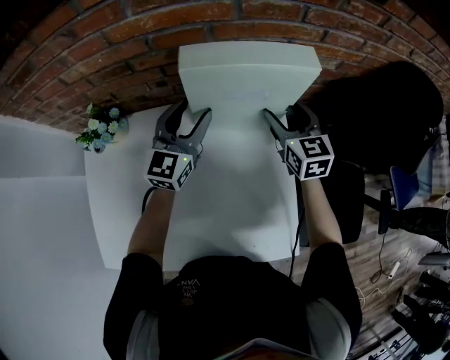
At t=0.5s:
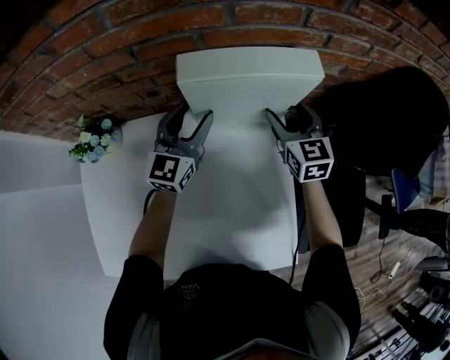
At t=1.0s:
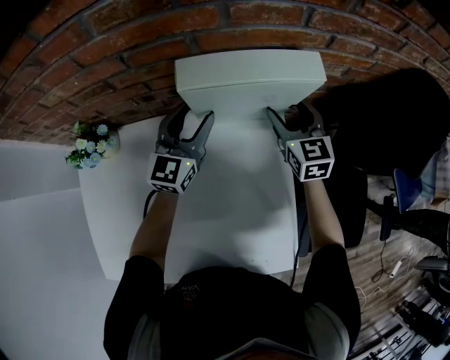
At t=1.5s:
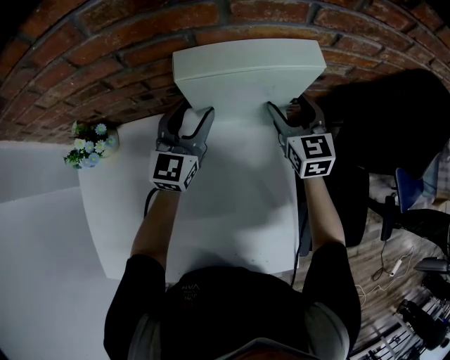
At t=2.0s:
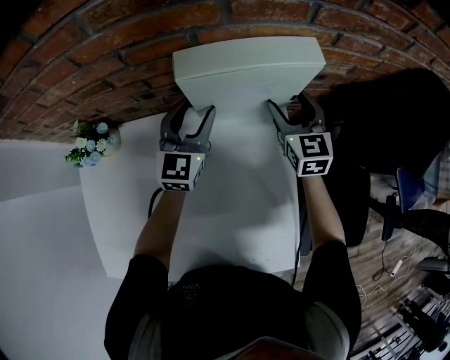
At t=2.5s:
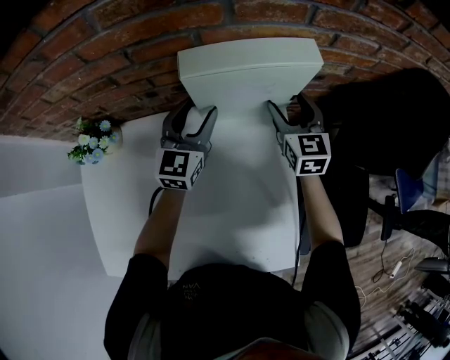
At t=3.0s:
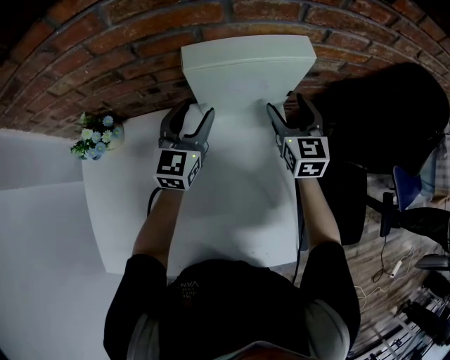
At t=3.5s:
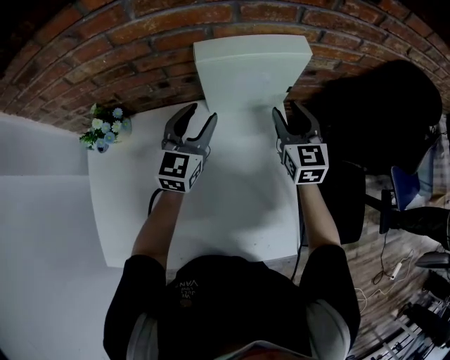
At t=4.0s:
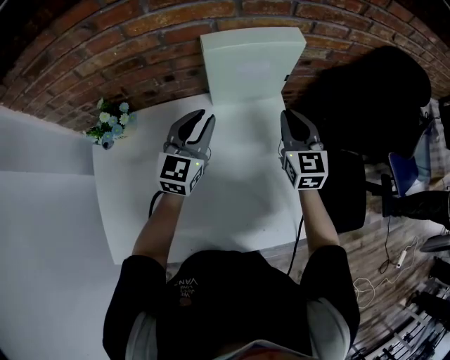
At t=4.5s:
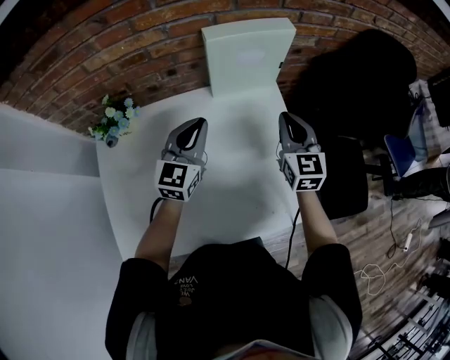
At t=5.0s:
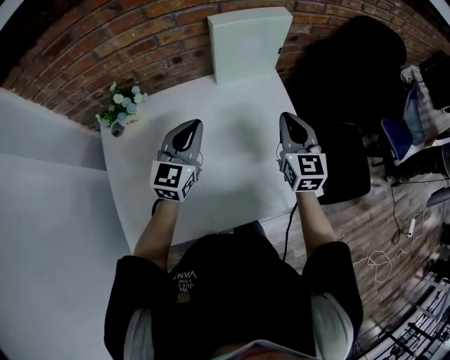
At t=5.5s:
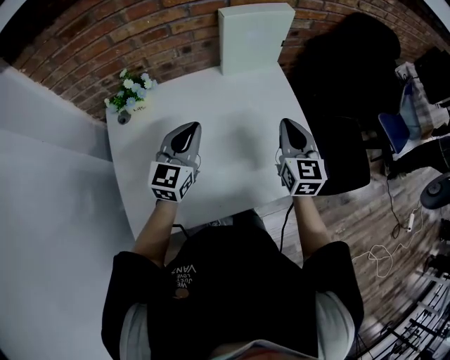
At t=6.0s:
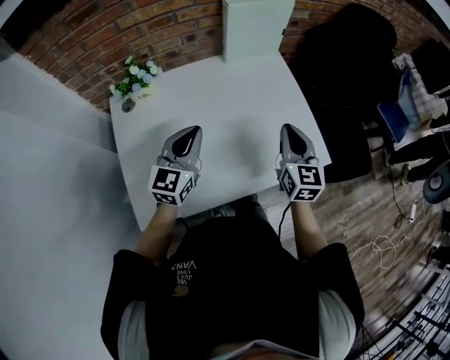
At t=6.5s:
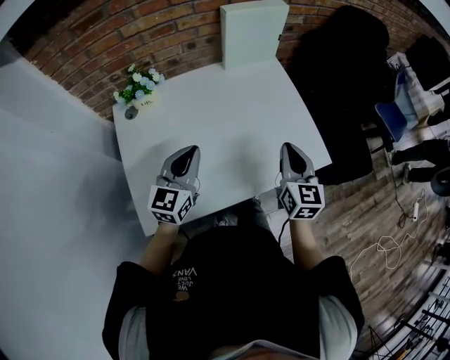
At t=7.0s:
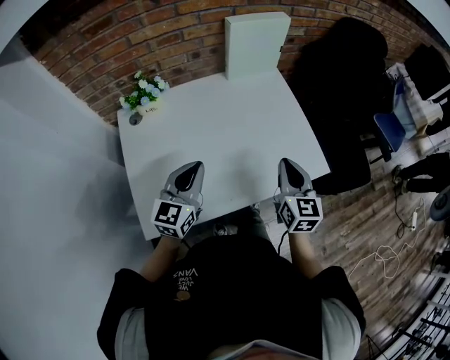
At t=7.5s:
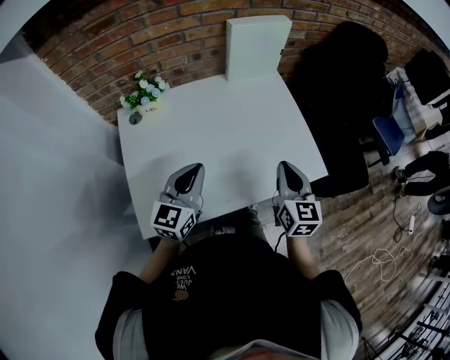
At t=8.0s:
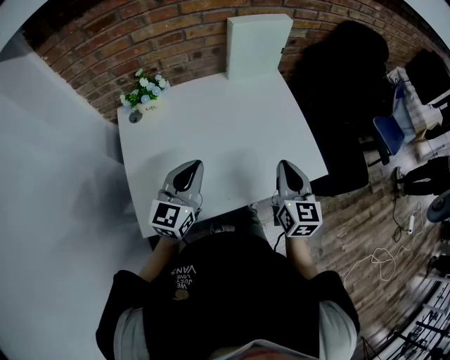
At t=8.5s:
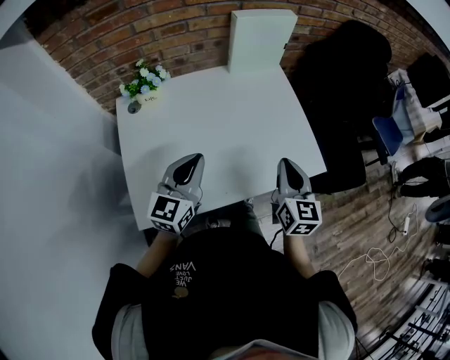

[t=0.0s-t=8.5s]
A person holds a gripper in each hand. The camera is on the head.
t=0.0s to t=2.0s: Both grippers move forward, about 5 cm.
t=2.0s to t=4.0s: Both grippers travel together backward, roughly 15 cm. The right gripper closes its fingers. Meanwhile the left gripper closes up.
t=4.0s to t=6.5s: Both grippers move backward, approximately 30 cm. The right gripper rotates approximately 20 degrees.
t=6.5s to t=8.5s: There are only small adjustments of the grippers.

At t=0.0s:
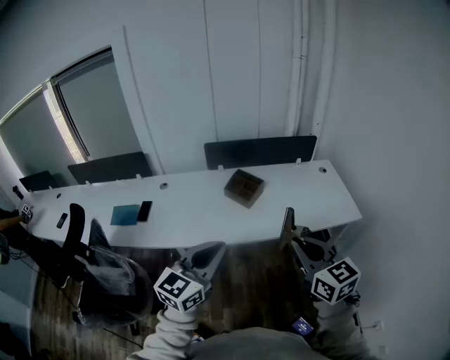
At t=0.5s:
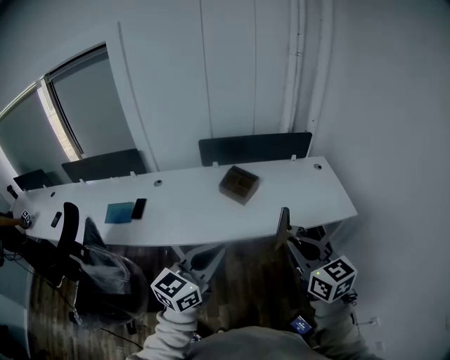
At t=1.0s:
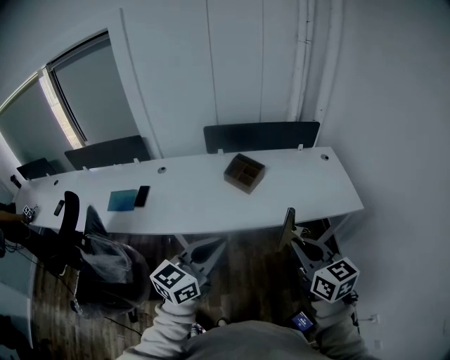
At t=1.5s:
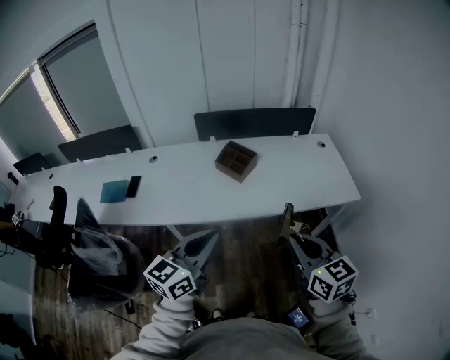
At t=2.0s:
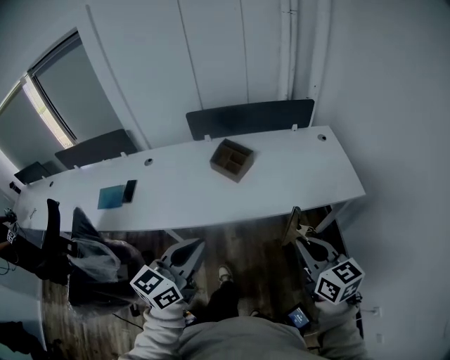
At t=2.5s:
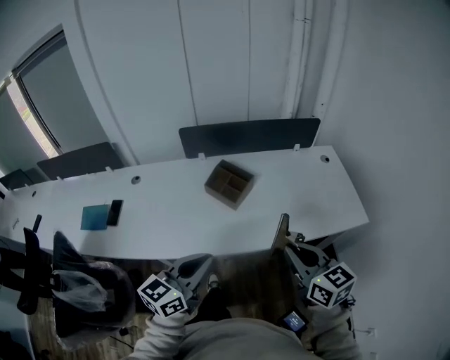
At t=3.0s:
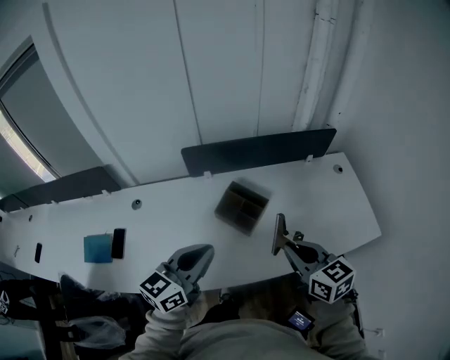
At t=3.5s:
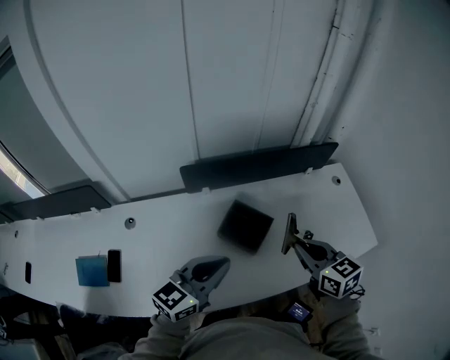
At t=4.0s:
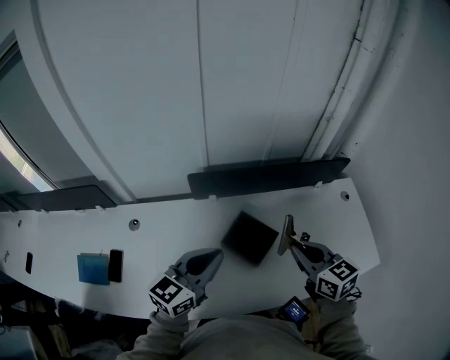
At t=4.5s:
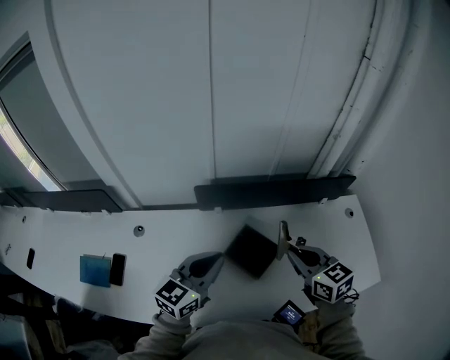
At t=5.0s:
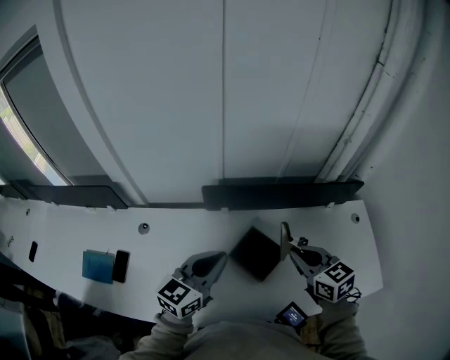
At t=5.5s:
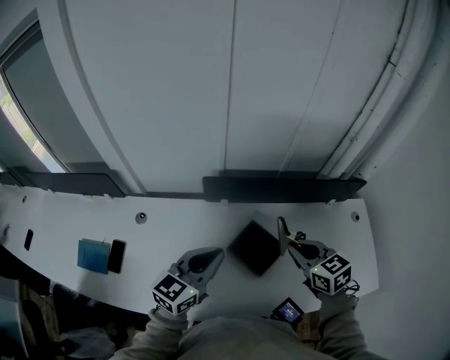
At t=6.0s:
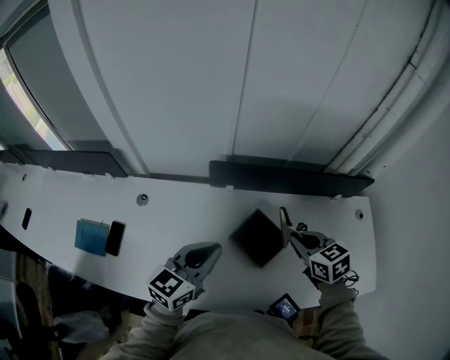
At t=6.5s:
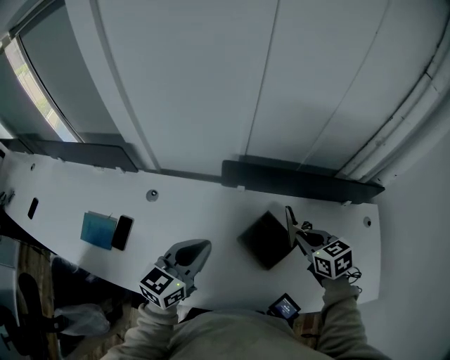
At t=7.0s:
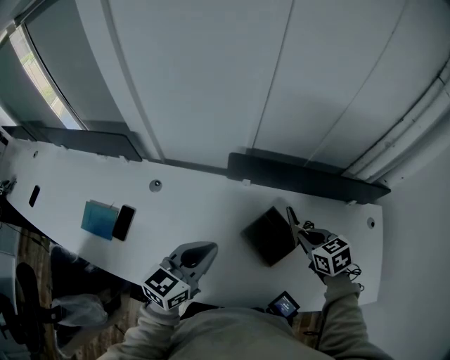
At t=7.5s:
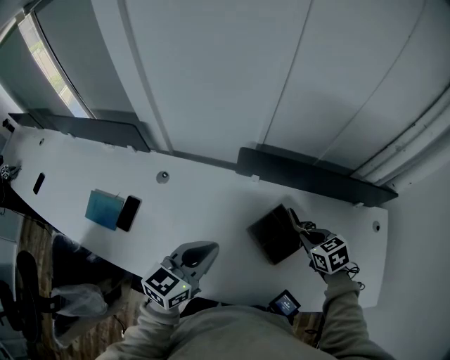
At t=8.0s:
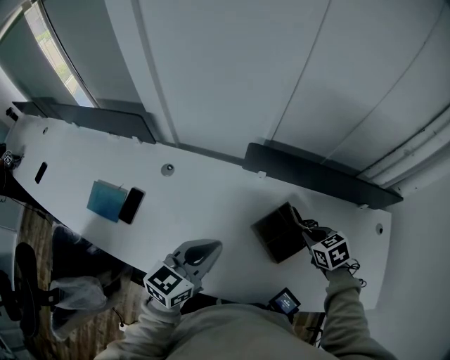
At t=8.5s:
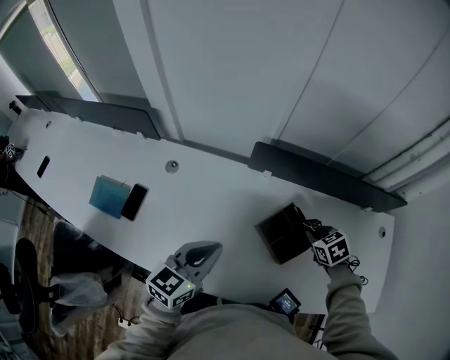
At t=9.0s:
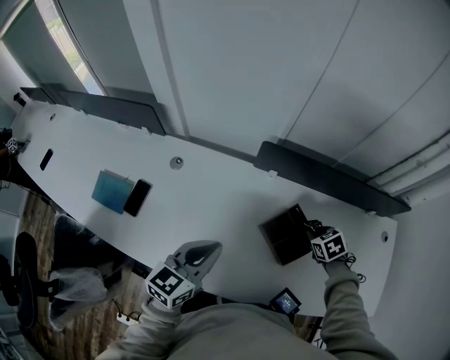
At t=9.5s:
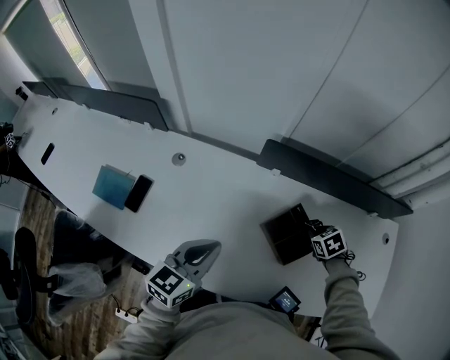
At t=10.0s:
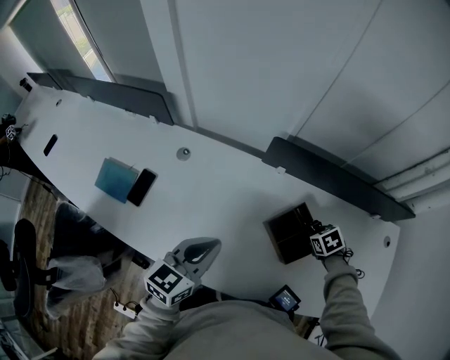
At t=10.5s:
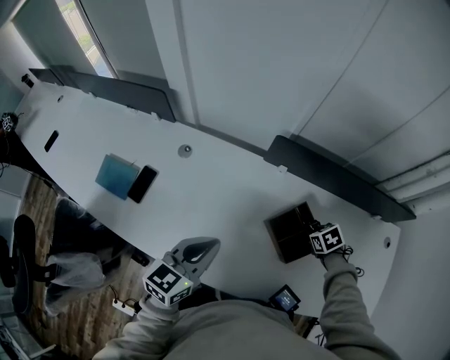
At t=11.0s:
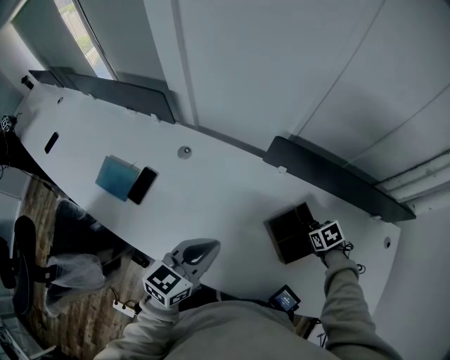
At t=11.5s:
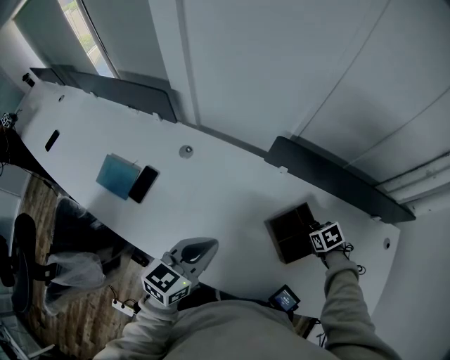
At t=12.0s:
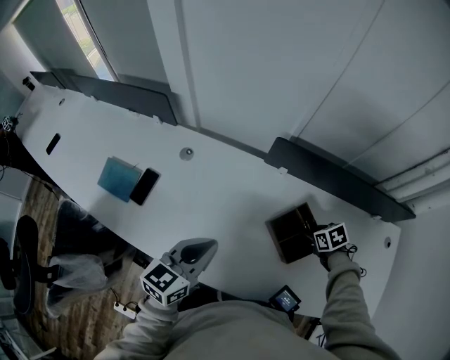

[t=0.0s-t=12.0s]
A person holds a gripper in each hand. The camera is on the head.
t=0.0s to t=2.0s: The right gripper shifts roughly 15 cm downward and to the right; the left gripper moves downward, some 5 cm.
t=2.0s to t=4.0s: The two grippers travel together, forward, about 50 cm.
t=4.0s to t=6.0s: The right gripper shifts roughly 10 cm forward and downward, and swivels roughly 20 degrees. Meanwhile the left gripper changes place by approximately 5 cm.
t=6.0s to t=8.0s: The left gripper moves to the left, some 5 cm. Meanwhile the right gripper travels downward by about 10 cm, and turns by roughly 20 degrees.
t=8.0s to t=10.0s: The right gripper shifts roughly 10 cm downward.
t=10.0s to t=12.0s: The right gripper opens its fingers.

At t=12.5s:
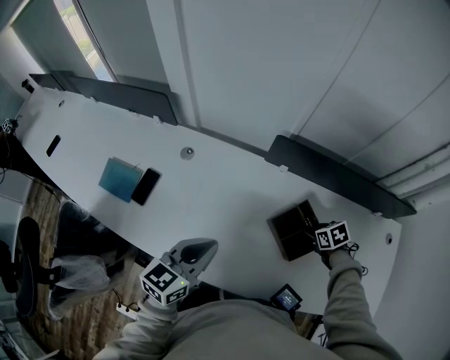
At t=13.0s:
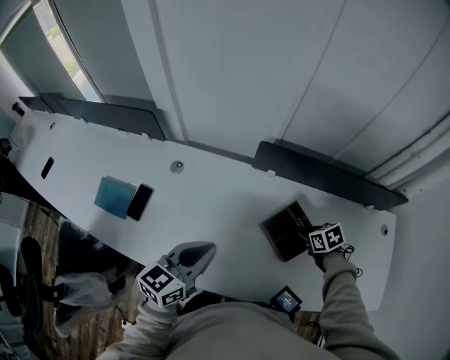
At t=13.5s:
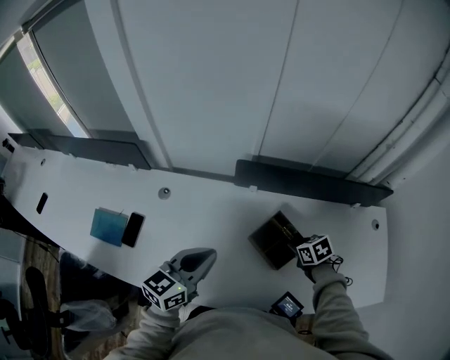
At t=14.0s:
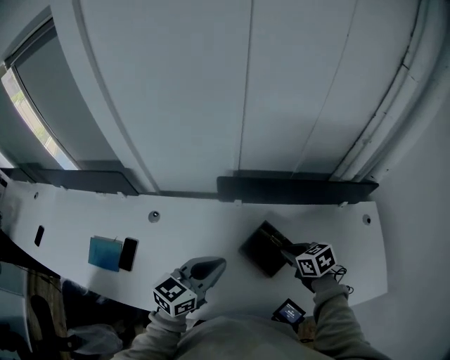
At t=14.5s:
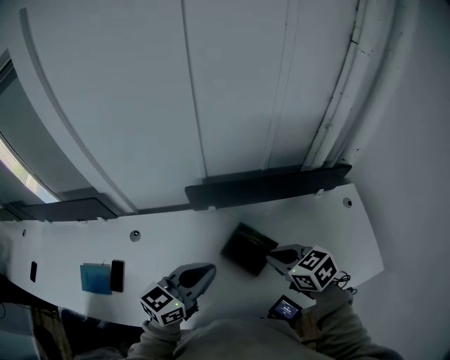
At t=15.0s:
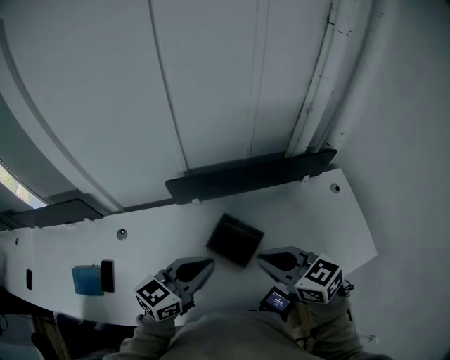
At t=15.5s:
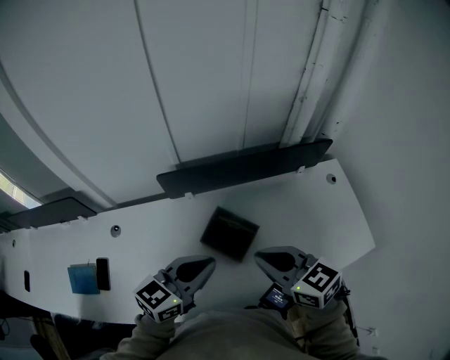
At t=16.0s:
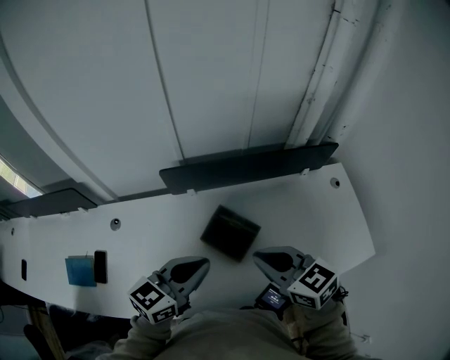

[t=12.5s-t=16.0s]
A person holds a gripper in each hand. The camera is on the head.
t=12.5s to t=14.5s: The left gripper shifts approximately 15 cm to the right and upward, and changes its angle by roughly 30 degrees. Meanwhile the right gripper goes about 25 cm upward, swivels about 30 degrees, and closes its fingers.
t=14.5s to t=16.0s: The left gripper shifts some 5 cm to the right, while the right gripper moves about 5 cm.

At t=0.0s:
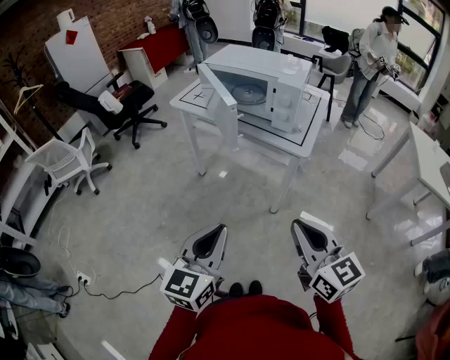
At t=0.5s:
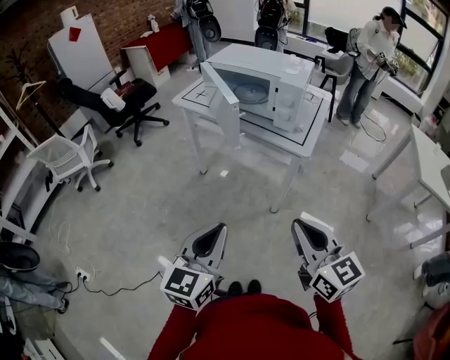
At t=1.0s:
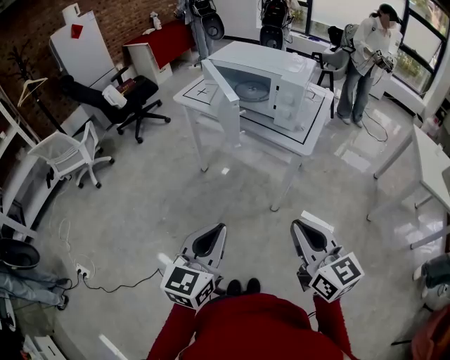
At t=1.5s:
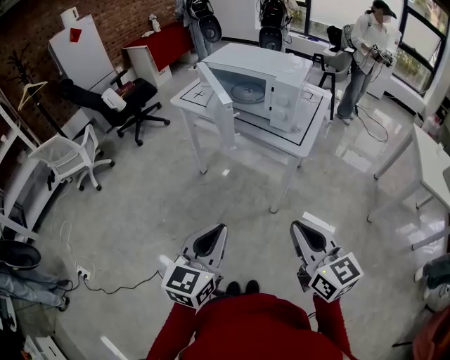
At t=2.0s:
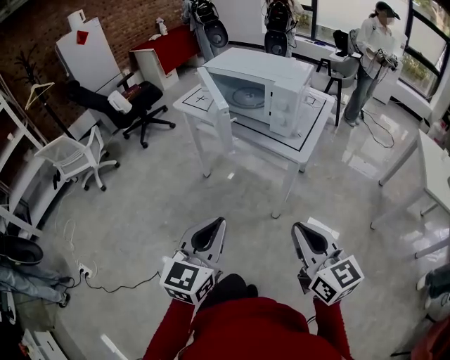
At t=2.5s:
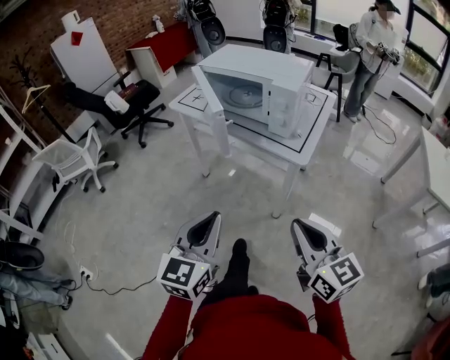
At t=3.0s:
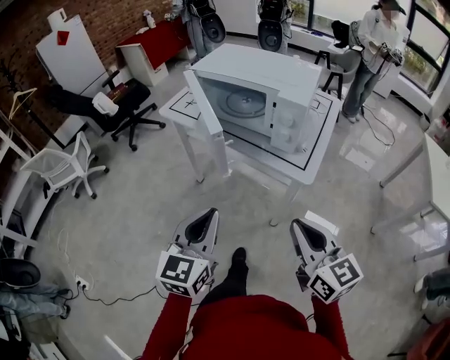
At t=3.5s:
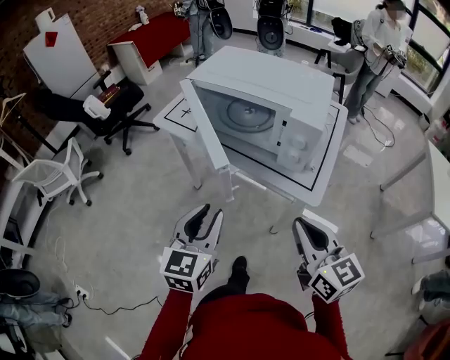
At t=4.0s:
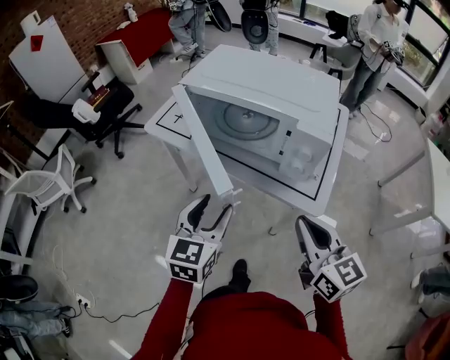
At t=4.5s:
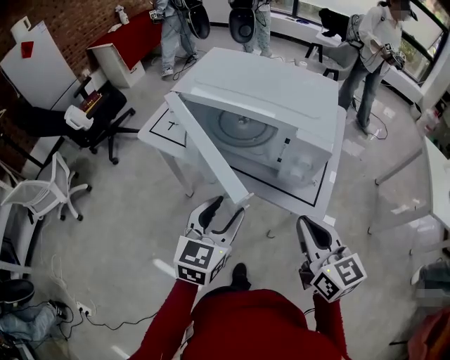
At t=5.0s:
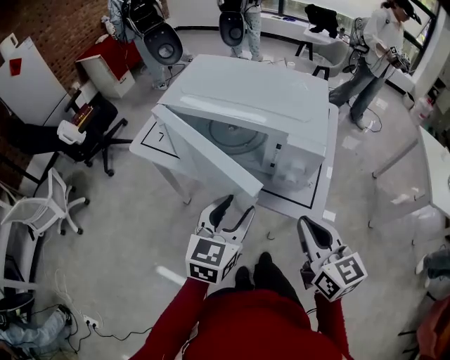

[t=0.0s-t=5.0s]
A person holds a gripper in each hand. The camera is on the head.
t=0.0s to t=2.5s: The left gripper heads forward, covering roughly 5 cm. The right gripper travels to the right by some 5 cm.
t=2.5s to t=5.0s: Both grippers travel together forward, about 25 cm. The left gripper opens.
